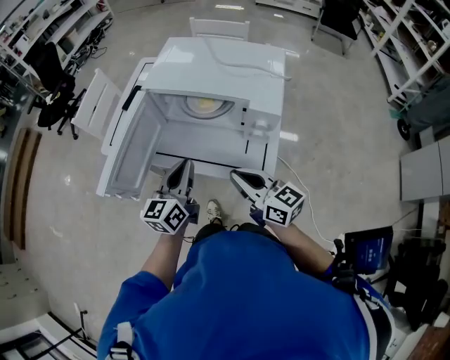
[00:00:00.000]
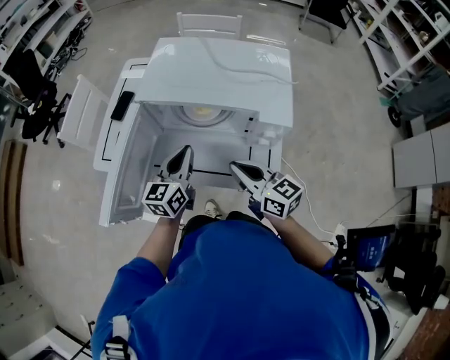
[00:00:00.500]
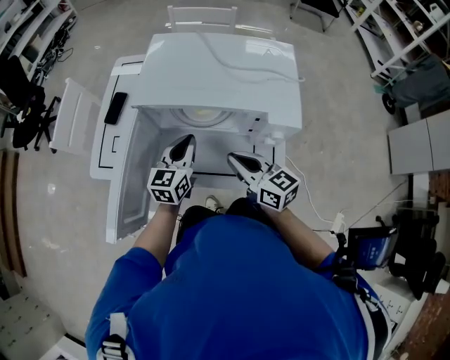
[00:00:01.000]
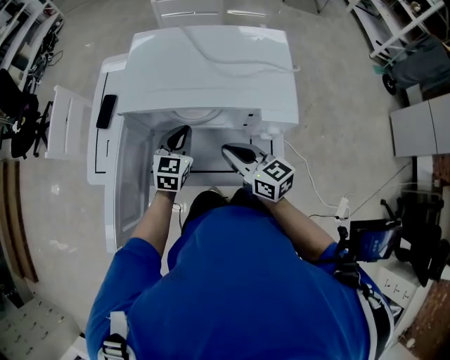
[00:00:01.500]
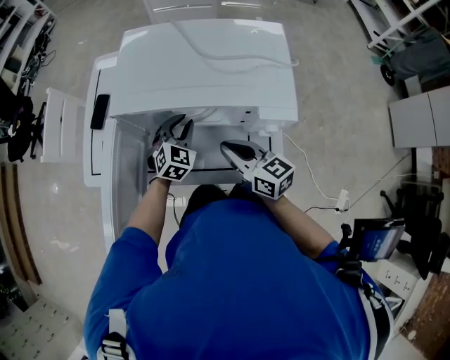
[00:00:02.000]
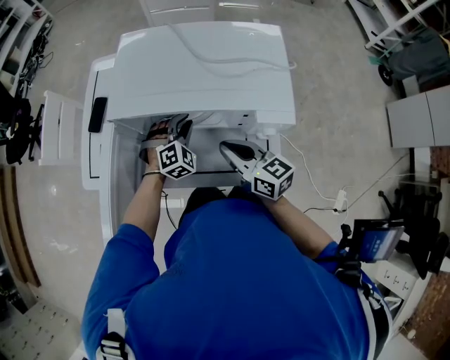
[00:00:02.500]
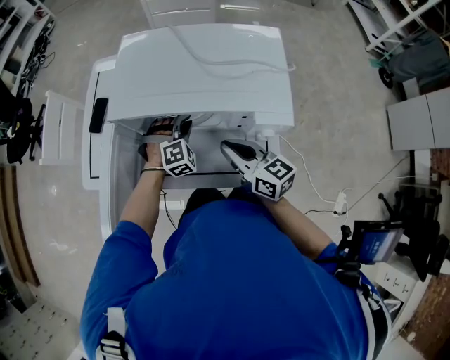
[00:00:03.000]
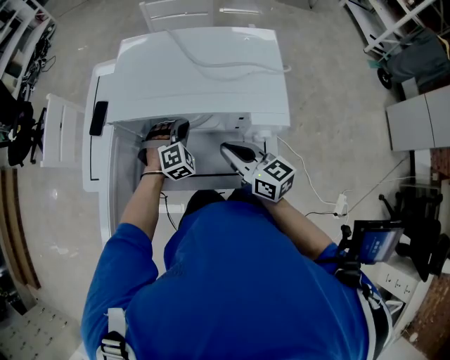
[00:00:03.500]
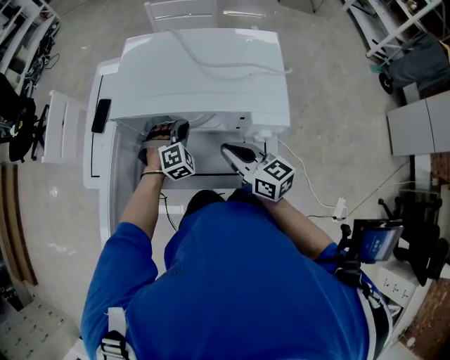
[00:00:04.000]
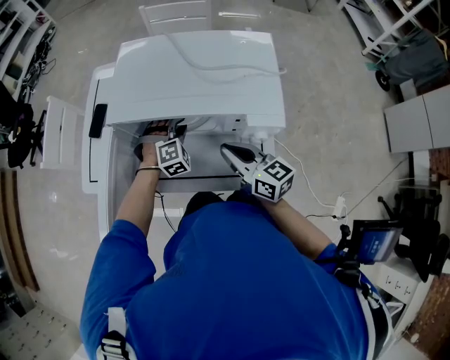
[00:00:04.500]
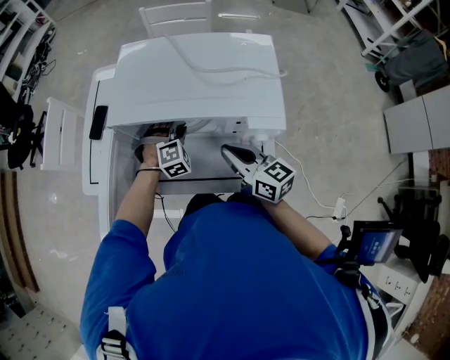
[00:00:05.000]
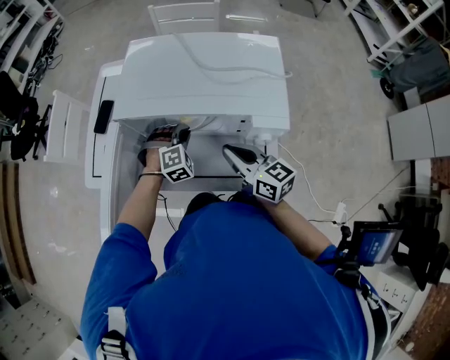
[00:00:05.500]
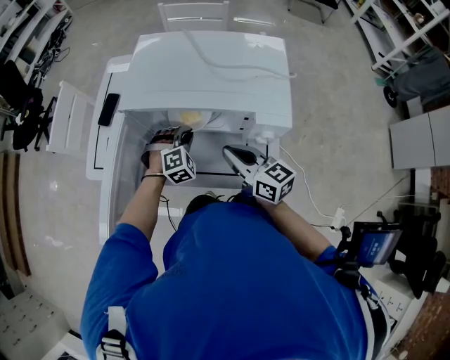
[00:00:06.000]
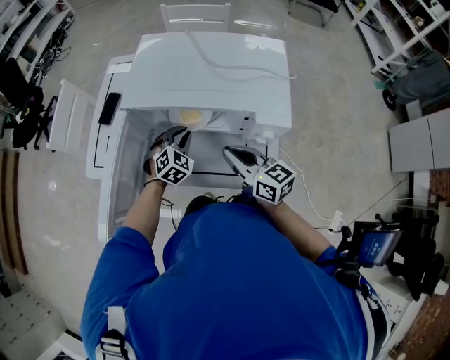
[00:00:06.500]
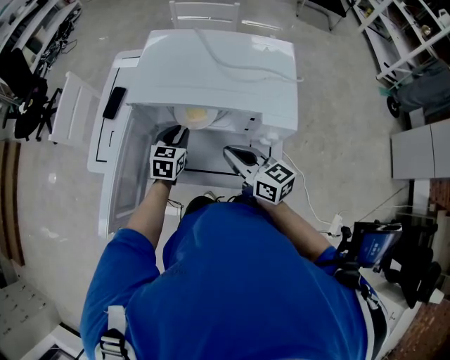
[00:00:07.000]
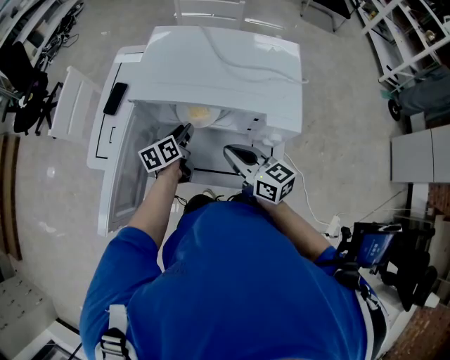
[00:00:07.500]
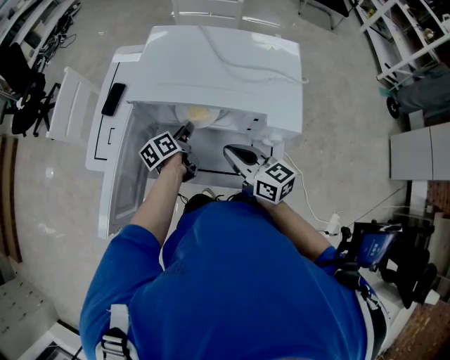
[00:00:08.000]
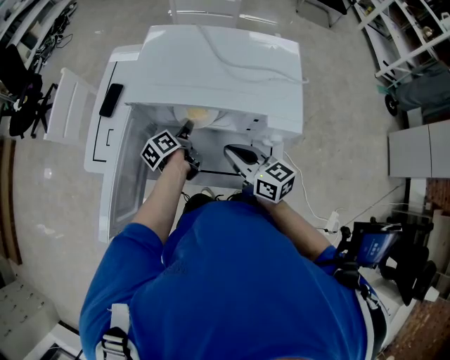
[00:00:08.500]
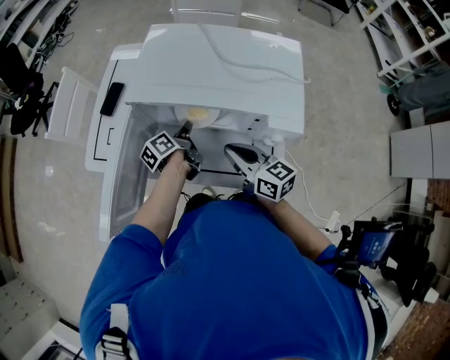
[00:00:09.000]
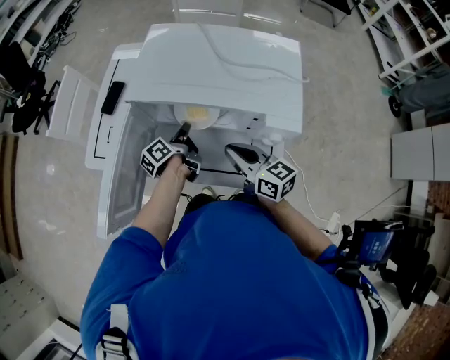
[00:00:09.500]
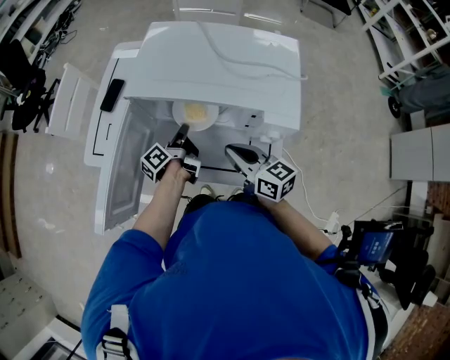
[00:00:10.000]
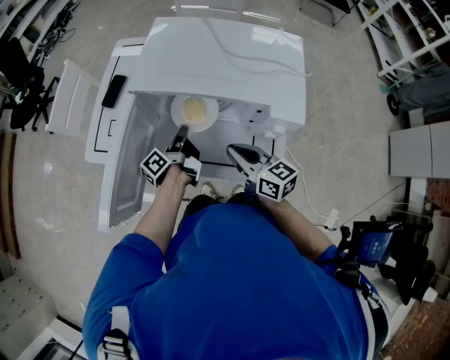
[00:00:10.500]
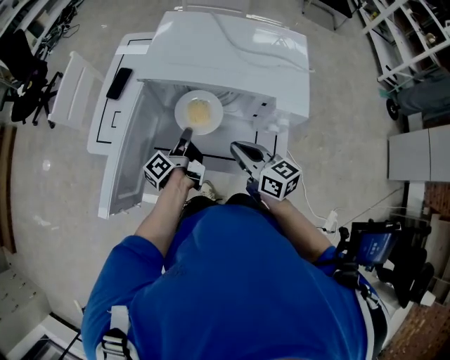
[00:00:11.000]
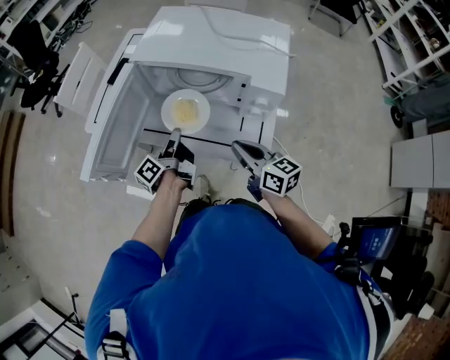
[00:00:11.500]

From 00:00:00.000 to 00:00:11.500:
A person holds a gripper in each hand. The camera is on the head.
From 00:00:00.000 to 00:00:02.000: The left gripper heads forward and downward, covering approximately 25 cm, and rotates around the line of its fingers by about 50 degrees, clockwise from behind, while the right gripper shifts about 15 cm forward and downward.
From 00:00:02.000 to 00:00:04.000: The left gripper turns by roughly 40 degrees.
From 00:00:04.000 to 00:00:06.000: The grippers stay close to where they were, moving slightly.
From 00:00:06.000 to 00:00:07.500: The left gripper is displaced to the left by approximately 5 cm, twists approximately 100 degrees counterclockwise, seen from behind, and opens.
From 00:00:07.500 to 00:00:09.500: The left gripper swivels roughly 40 degrees, and closes its fingers.
From 00:00:09.500 to 00:00:11.500: The grippers both shift backward by about 10 cm. The left gripper swivels some 20 degrees.

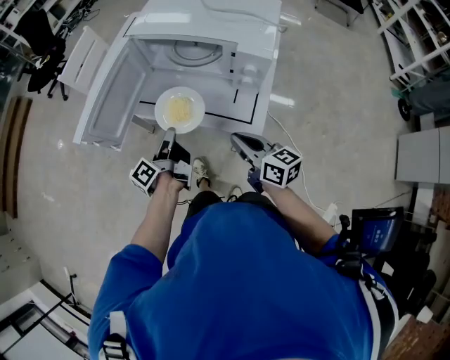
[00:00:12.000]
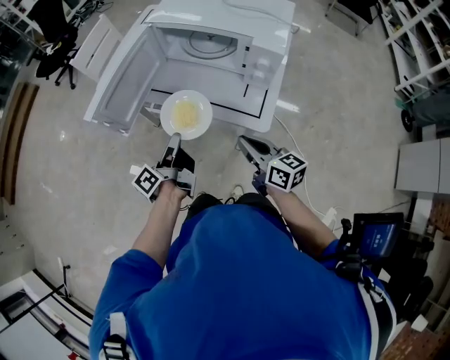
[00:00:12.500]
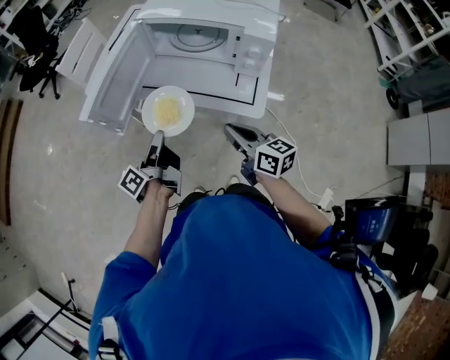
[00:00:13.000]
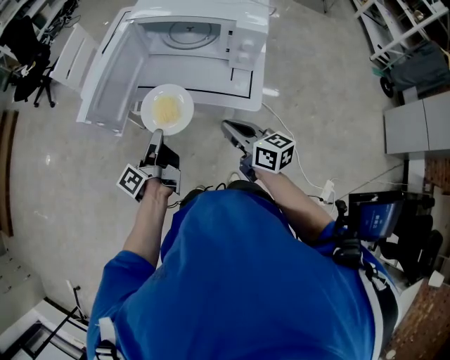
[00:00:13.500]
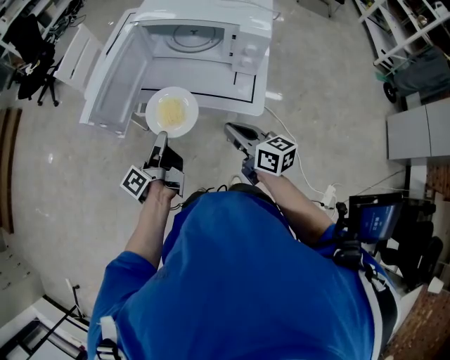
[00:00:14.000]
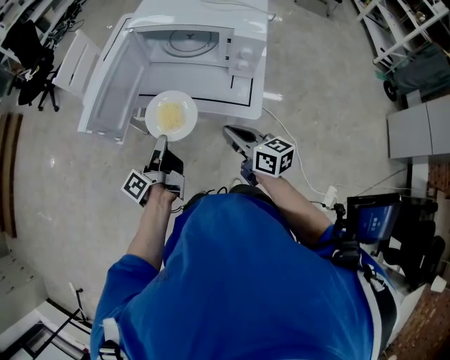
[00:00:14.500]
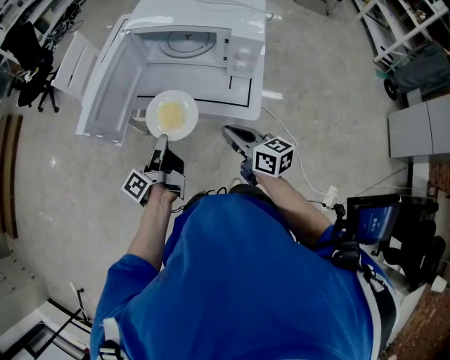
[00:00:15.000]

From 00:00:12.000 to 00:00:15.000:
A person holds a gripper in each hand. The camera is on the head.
From 00:00:12.000 to 00:00:13.500: The left gripper travels to the left and backward by some 10 cm. The right gripper travels to the left by some 5 cm.
From 00:00:13.500 to 00:00:15.000: The grippers stay close to where they were, moving slightly.

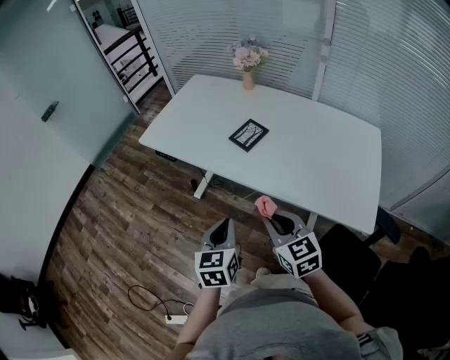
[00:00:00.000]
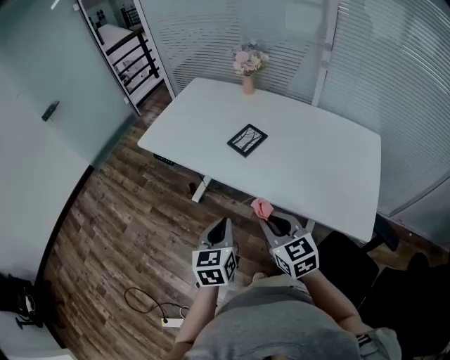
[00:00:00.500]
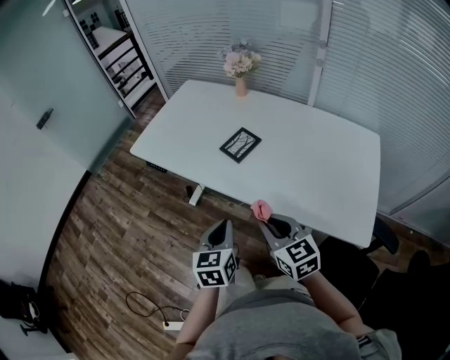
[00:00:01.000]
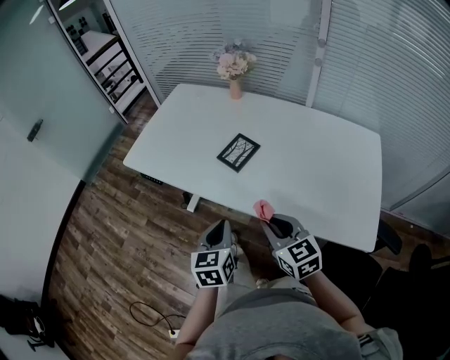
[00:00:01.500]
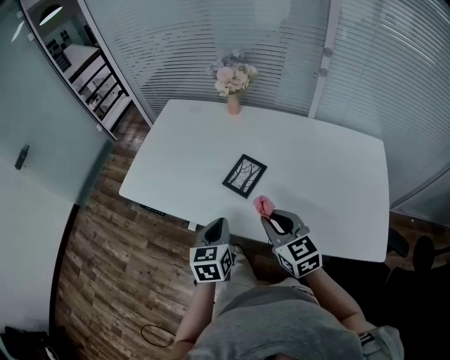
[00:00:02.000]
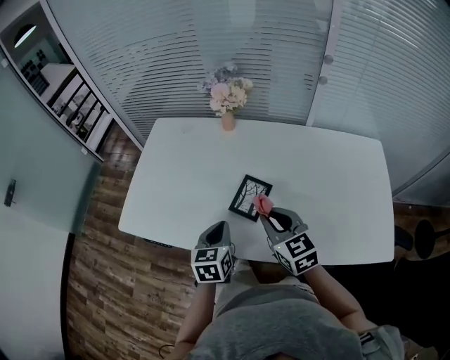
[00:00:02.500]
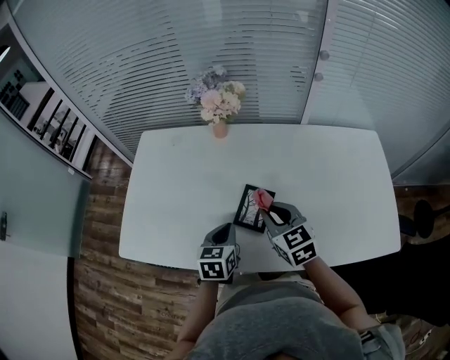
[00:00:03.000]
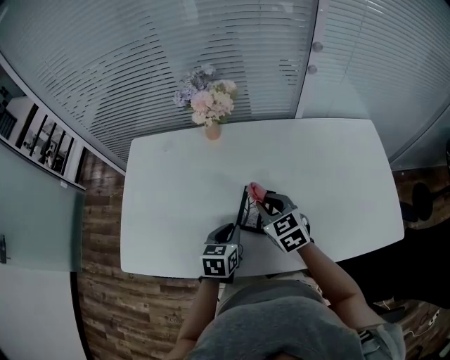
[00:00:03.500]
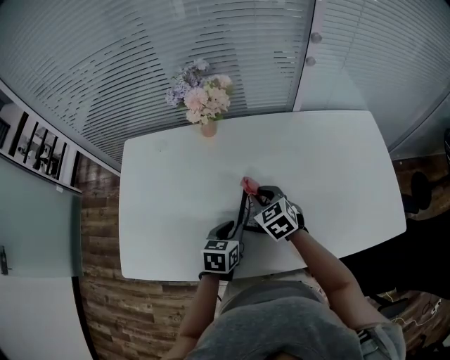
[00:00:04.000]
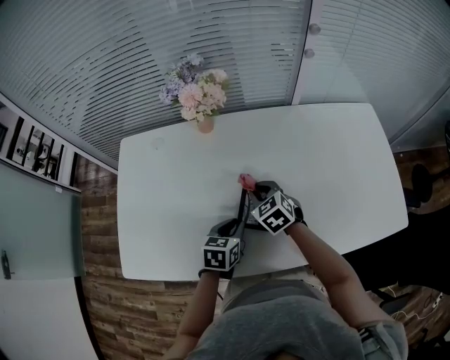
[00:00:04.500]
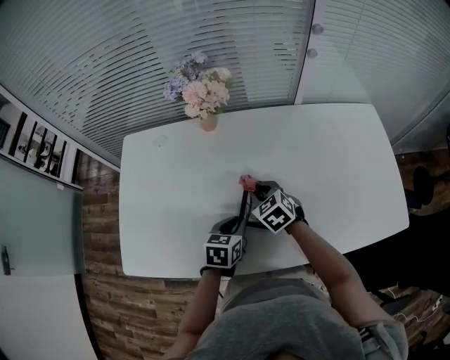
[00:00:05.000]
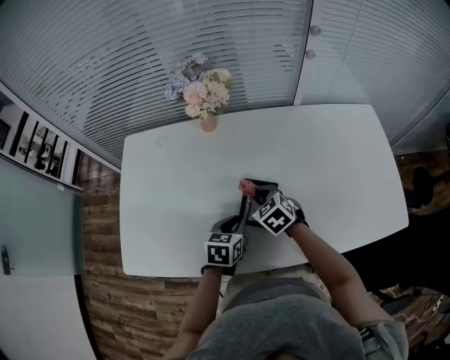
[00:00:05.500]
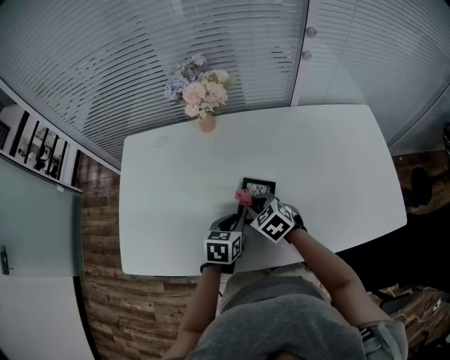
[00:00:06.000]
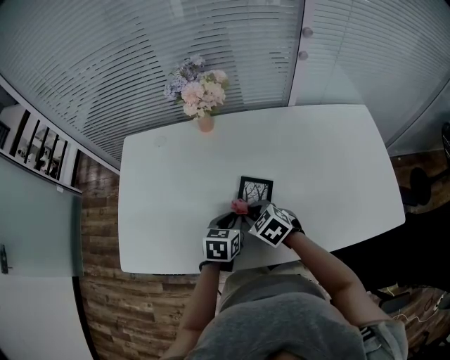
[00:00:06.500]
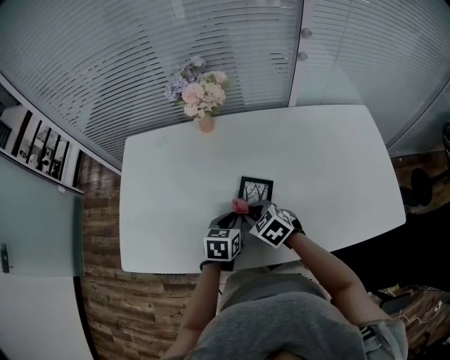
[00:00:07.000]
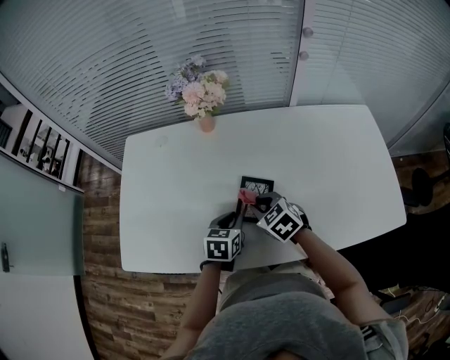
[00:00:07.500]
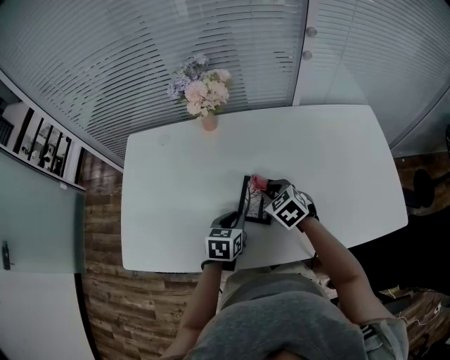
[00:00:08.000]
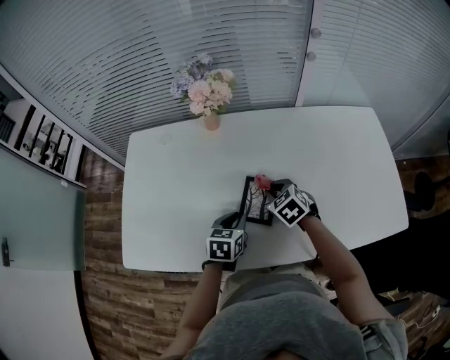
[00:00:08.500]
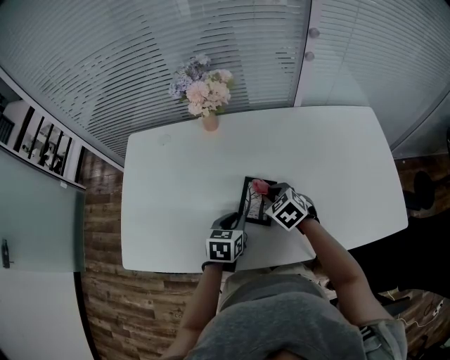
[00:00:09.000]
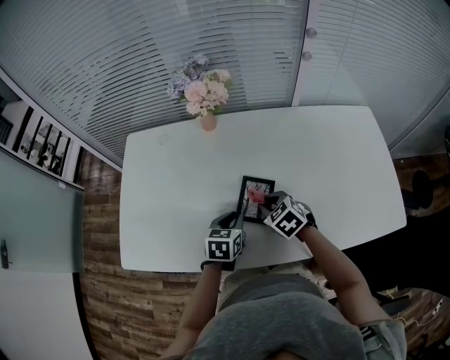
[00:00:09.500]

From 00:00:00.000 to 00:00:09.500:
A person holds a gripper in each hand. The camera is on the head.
From 00:00:00.000 to 00:00:02.000: Both grippers travel together forward, approximately 20 cm.
From 00:00:02.000 to 00:00:04.000: The right gripper shifts by some 25 cm, and changes its angle by roughly 30 degrees. The left gripper ends up roughly 20 cm from where it was, and turns by roughly 40 degrees.
From 00:00:04.000 to 00:00:05.500: The grippers stay close to where they were, moving slightly.
From 00:00:05.500 to 00:00:07.500: The right gripper changes place by roughly 5 cm.

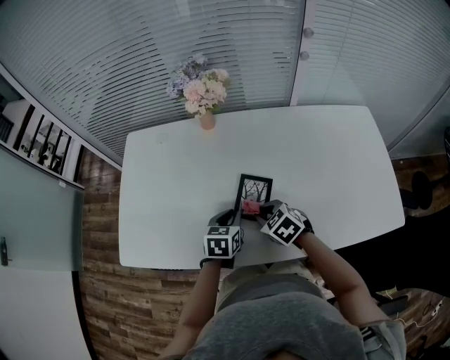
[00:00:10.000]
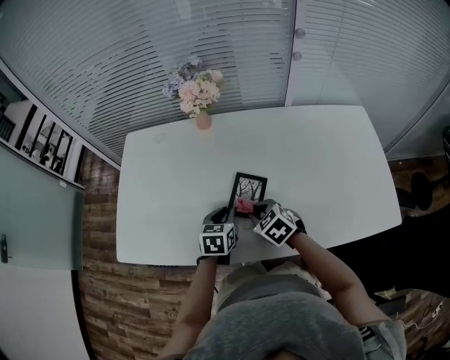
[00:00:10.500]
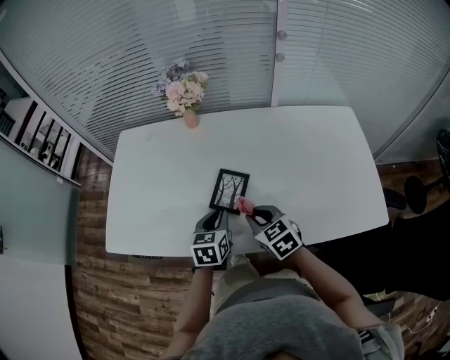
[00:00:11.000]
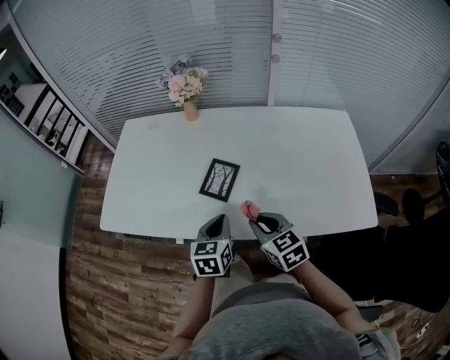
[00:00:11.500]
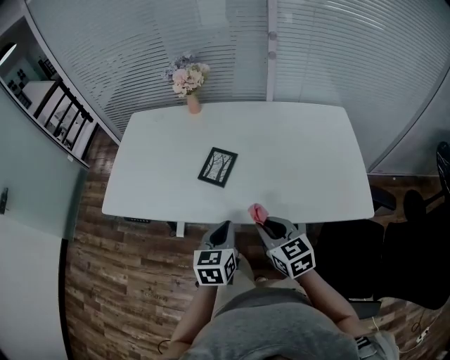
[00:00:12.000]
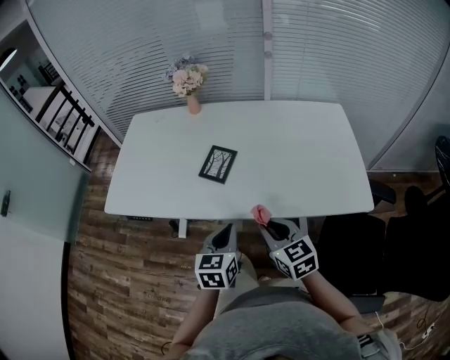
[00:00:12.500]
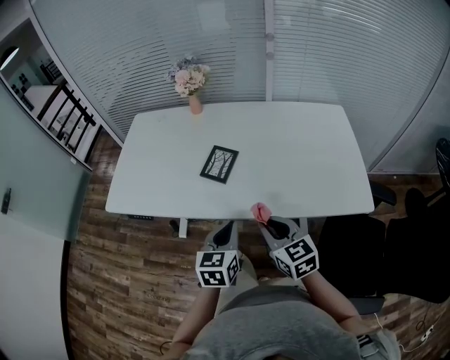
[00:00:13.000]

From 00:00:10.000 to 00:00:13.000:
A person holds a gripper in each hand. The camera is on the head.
From 00:00:10.000 to 00:00:11.500: Both grippers travel together backward, upward and to the right, approximately 20 cm. The right gripper turns by about 30 degrees.
From 00:00:11.500 to 00:00:13.000: Both grippers move backward, roughly 10 cm.
